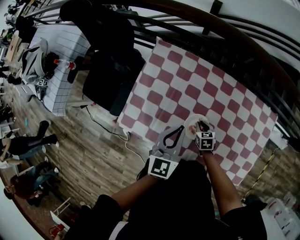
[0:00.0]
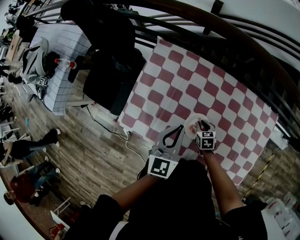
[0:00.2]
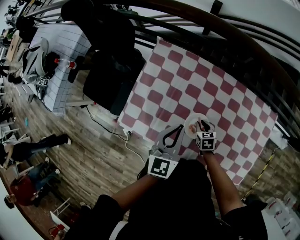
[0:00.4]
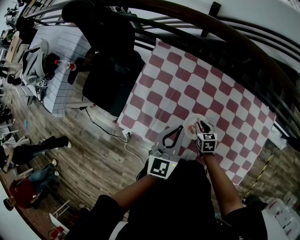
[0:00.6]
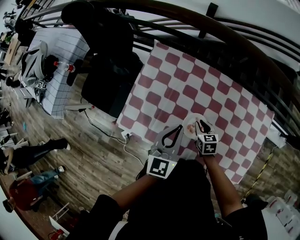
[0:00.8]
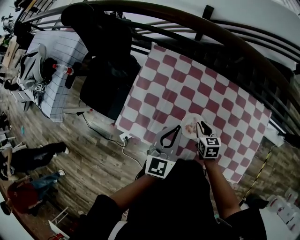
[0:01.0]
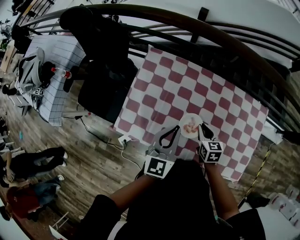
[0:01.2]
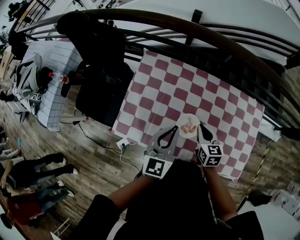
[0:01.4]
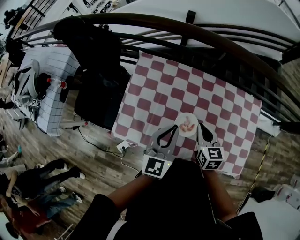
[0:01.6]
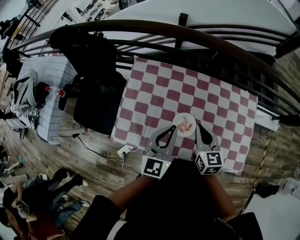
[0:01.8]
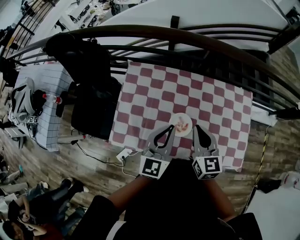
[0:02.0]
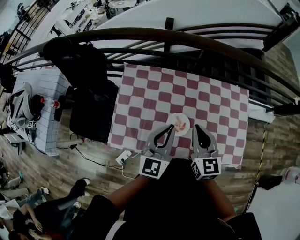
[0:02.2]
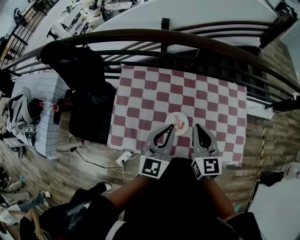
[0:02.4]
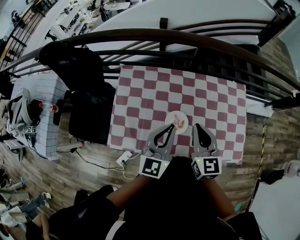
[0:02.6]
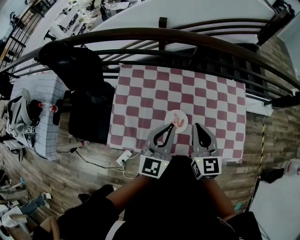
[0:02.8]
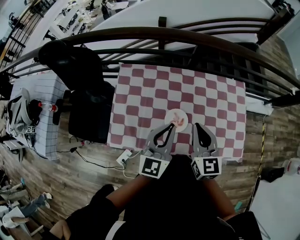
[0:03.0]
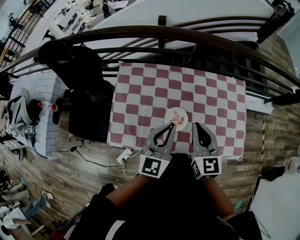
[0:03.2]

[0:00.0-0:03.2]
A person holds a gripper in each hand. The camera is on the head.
0:00.0 to 0:01.6: The right gripper shifts approximately 25 cm upward, and changes its angle by about 30 degrees. The left gripper is displaced upward by some 5 cm.
0:01.6 to 0:03.2: The left gripper ends up approximately 5 cm from where it was. Meanwhile the right gripper heads upward and backward, covering some 15 cm, and turns by roughly 20 degrees.

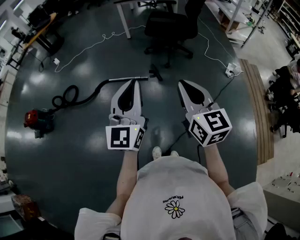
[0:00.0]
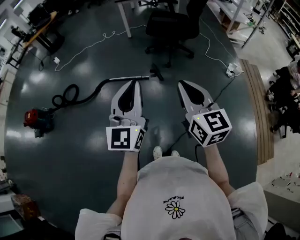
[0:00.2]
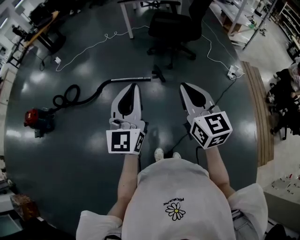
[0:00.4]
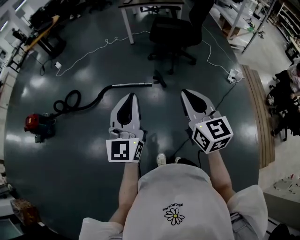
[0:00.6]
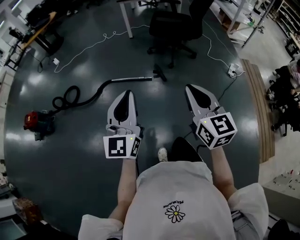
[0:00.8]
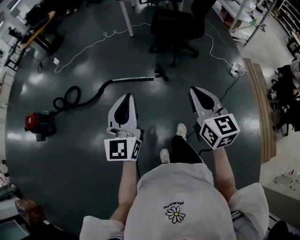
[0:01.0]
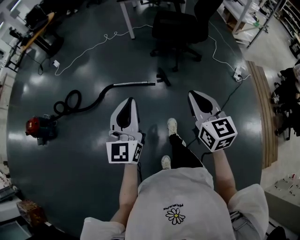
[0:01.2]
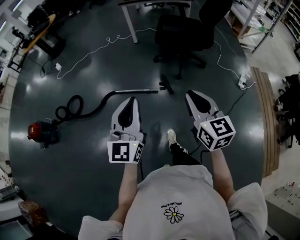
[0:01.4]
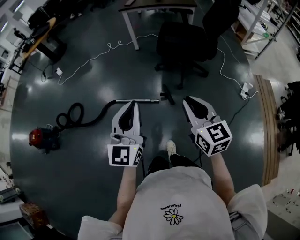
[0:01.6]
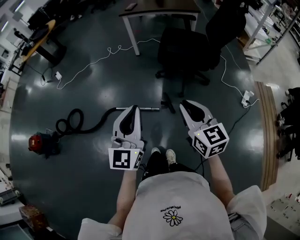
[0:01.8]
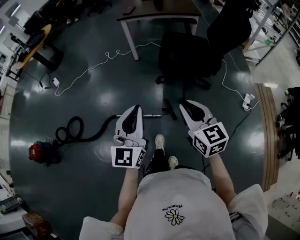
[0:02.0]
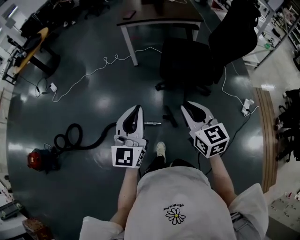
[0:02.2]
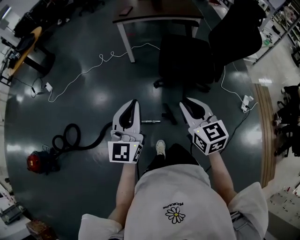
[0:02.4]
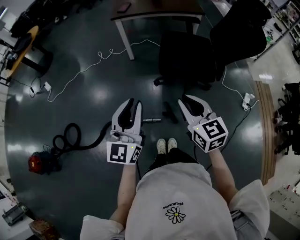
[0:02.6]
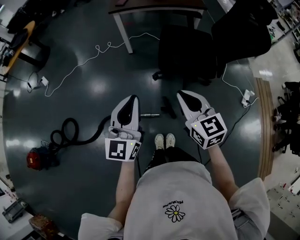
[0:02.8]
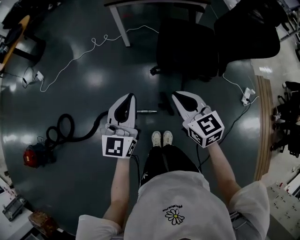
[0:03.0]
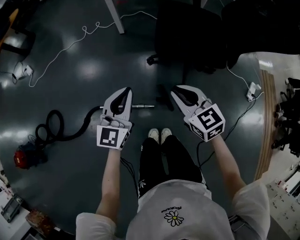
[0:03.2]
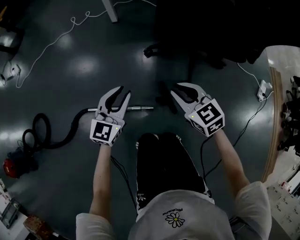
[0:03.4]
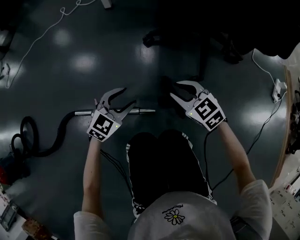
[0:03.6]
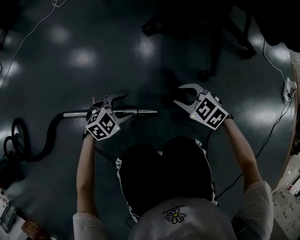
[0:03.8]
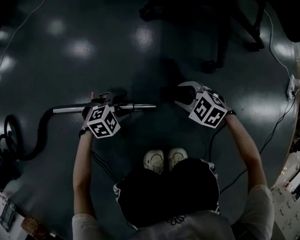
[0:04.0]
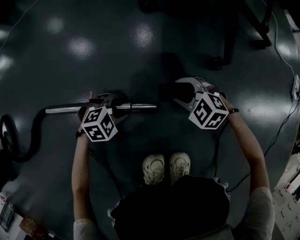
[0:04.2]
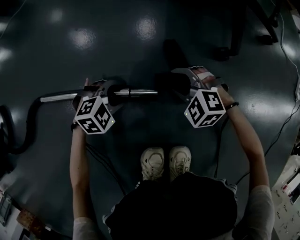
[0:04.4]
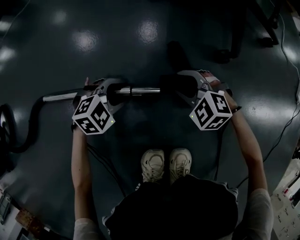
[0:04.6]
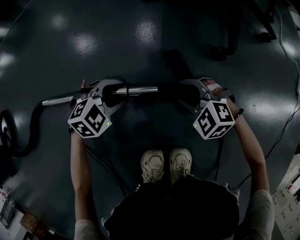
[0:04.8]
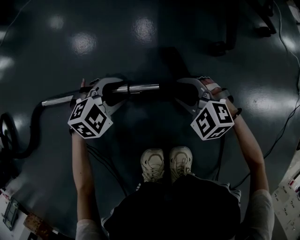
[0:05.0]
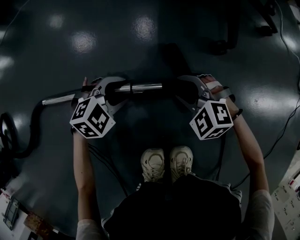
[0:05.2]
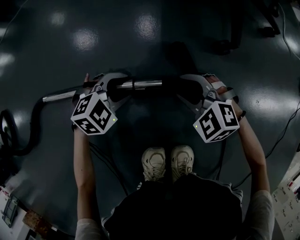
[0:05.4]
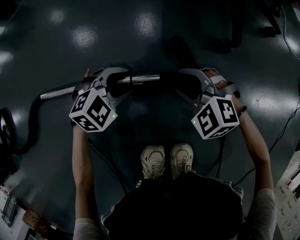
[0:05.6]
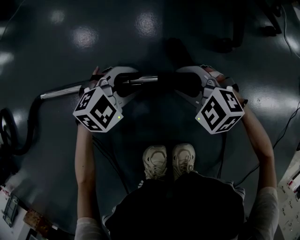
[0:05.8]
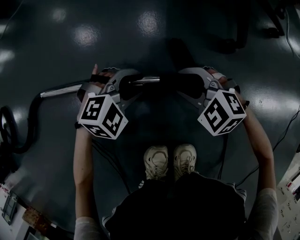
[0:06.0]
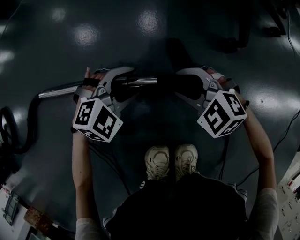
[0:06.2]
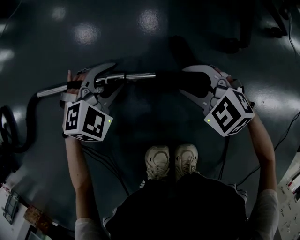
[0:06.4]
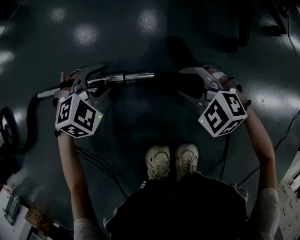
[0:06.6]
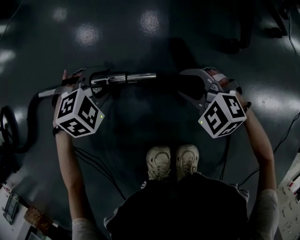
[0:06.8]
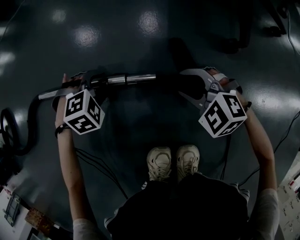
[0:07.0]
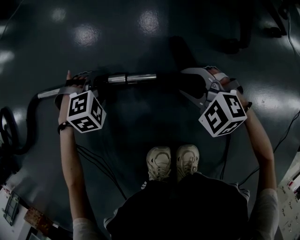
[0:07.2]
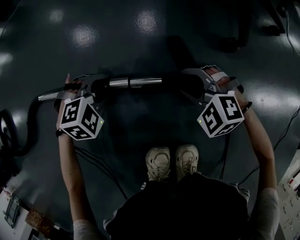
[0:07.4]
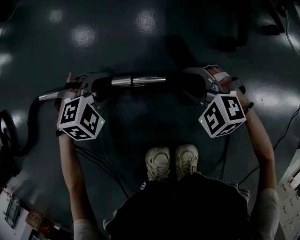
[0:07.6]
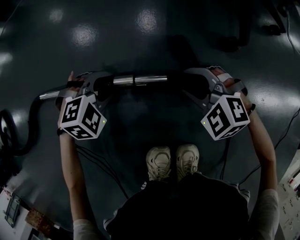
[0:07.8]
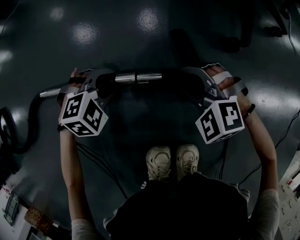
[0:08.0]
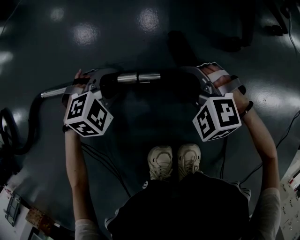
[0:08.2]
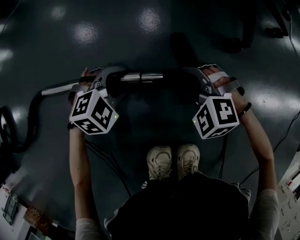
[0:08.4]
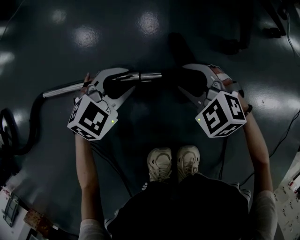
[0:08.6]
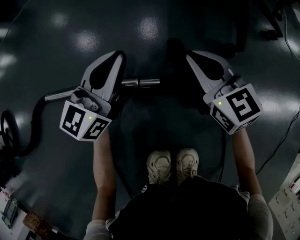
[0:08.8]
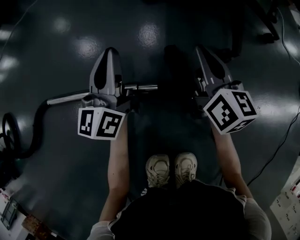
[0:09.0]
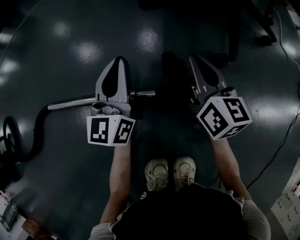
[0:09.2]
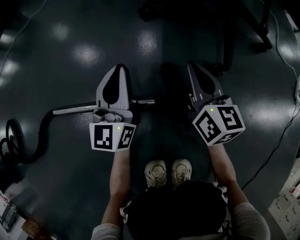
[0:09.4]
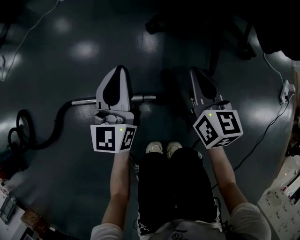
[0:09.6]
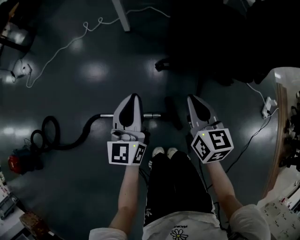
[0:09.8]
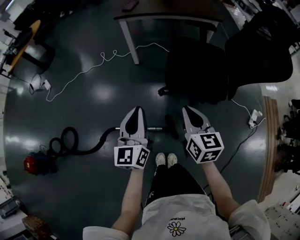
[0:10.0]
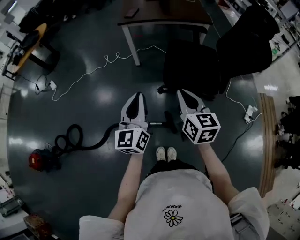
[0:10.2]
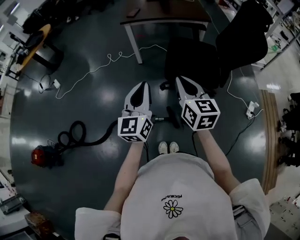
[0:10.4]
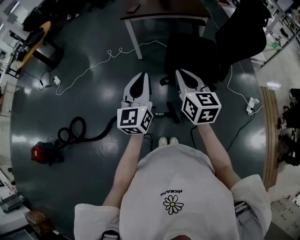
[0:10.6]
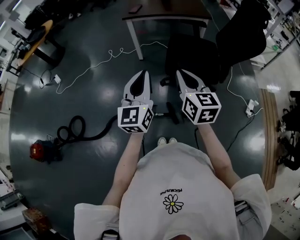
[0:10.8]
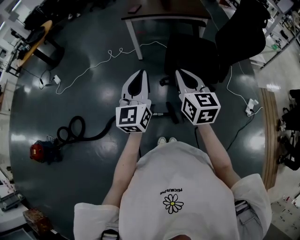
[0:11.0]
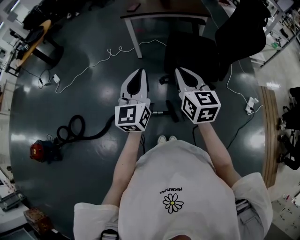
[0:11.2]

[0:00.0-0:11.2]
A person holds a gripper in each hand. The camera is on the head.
0:00.0 to 0:01.6: The grippers both shift forward by some 30 cm.
0:01.6 to 0:03.2: The two grippers go about 50 cm forward and downward.
0:03.2 to 0:04.8: Both grippers travel together downward, roughly 70 cm. The left gripper points its fingers about 50 degrees further downward, and opens its fingers; the right gripper turns by roughly 50 degrees, and opens.
0:04.8 to 0:06.4: The grippers move only a little.
0:08.0 to 0:09.6: The two grippers go roughly 35 cm upward. The right gripper twists roughly 80 degrees clockwise, seen from behind, and closes. The left gripper points its fingers some 70 degrees further upward, and closes up.
0:09.6 to 0:11.2: Both grippers travel together upward, approximately 70 cm.

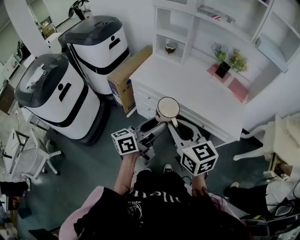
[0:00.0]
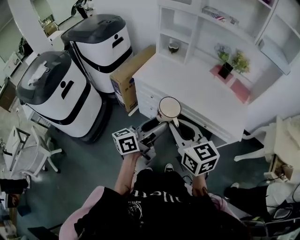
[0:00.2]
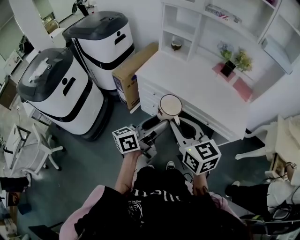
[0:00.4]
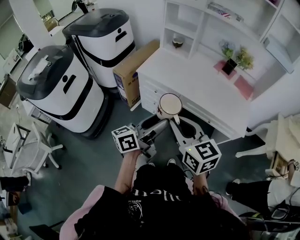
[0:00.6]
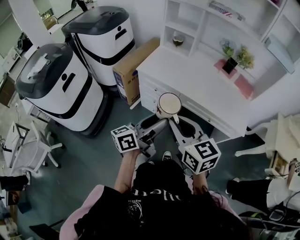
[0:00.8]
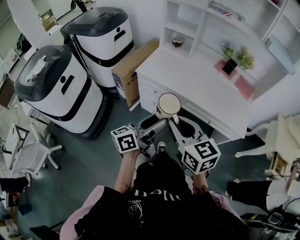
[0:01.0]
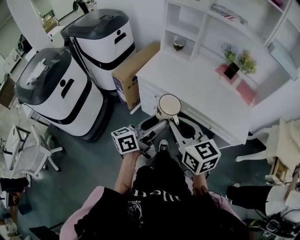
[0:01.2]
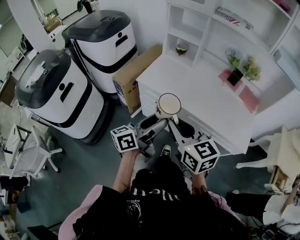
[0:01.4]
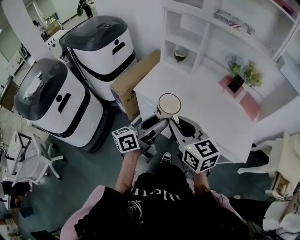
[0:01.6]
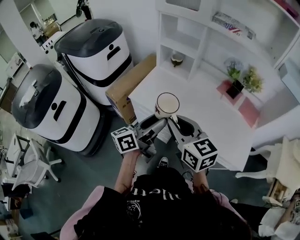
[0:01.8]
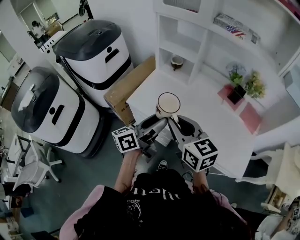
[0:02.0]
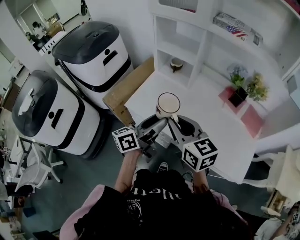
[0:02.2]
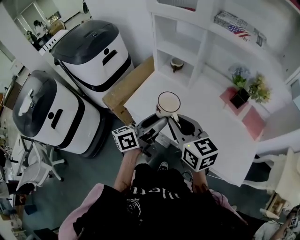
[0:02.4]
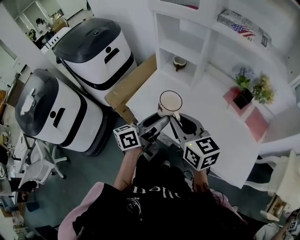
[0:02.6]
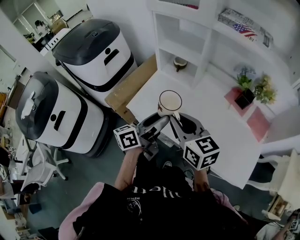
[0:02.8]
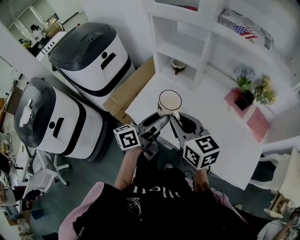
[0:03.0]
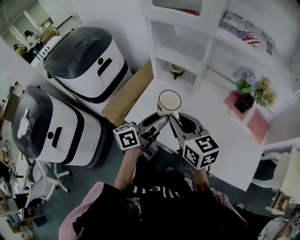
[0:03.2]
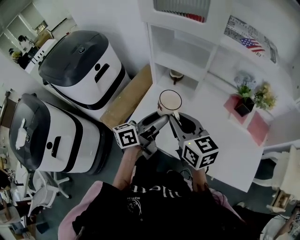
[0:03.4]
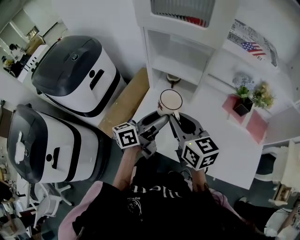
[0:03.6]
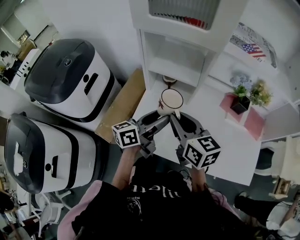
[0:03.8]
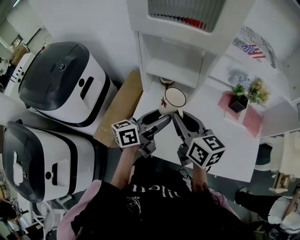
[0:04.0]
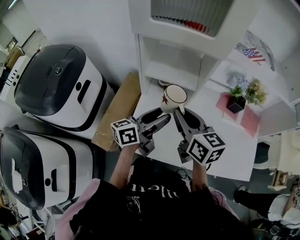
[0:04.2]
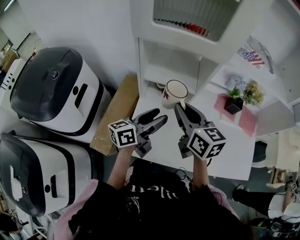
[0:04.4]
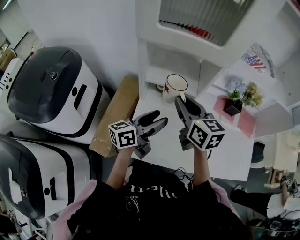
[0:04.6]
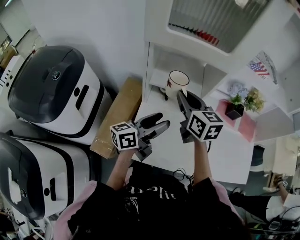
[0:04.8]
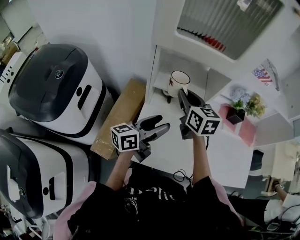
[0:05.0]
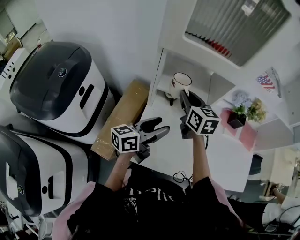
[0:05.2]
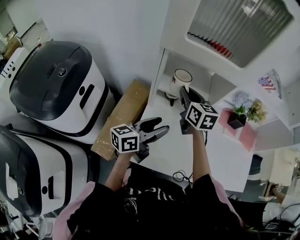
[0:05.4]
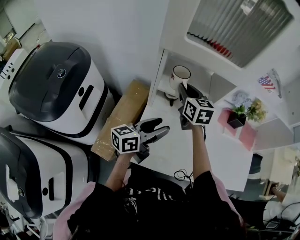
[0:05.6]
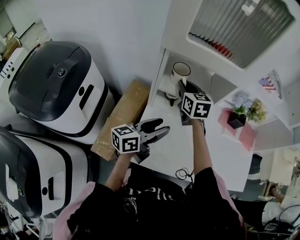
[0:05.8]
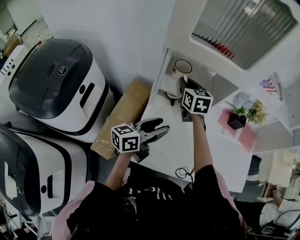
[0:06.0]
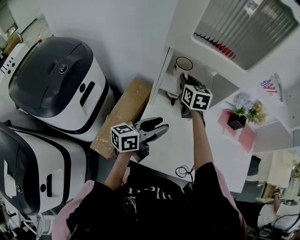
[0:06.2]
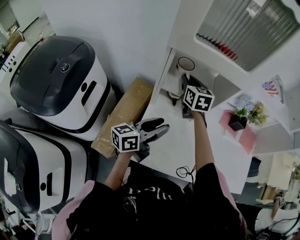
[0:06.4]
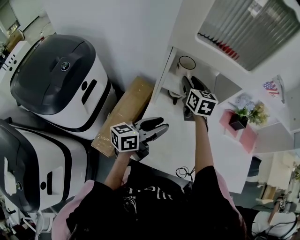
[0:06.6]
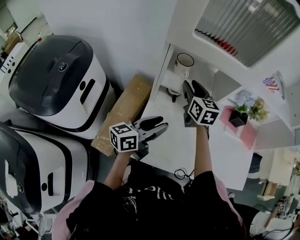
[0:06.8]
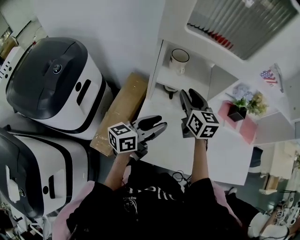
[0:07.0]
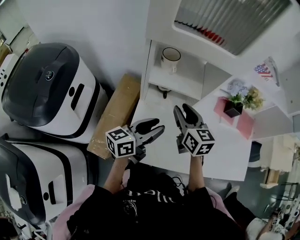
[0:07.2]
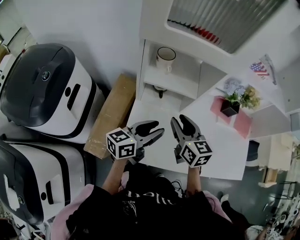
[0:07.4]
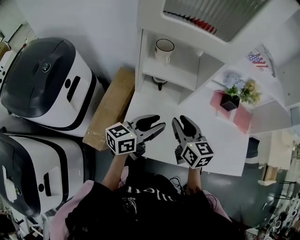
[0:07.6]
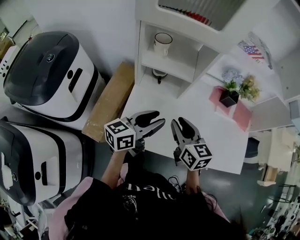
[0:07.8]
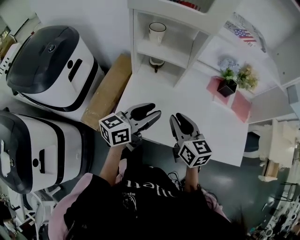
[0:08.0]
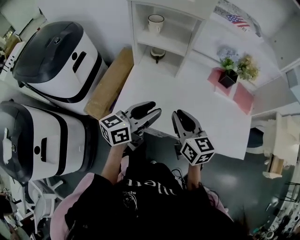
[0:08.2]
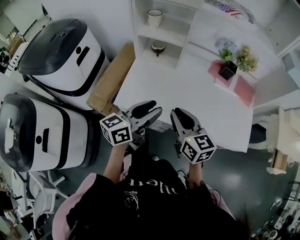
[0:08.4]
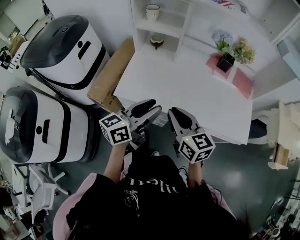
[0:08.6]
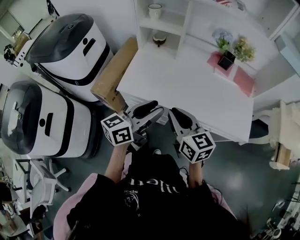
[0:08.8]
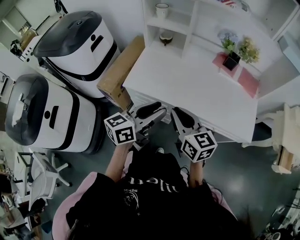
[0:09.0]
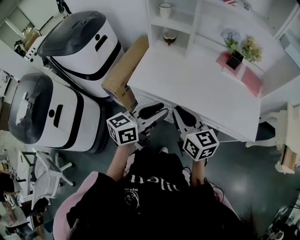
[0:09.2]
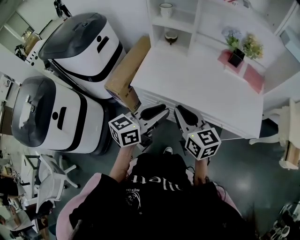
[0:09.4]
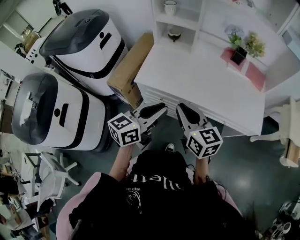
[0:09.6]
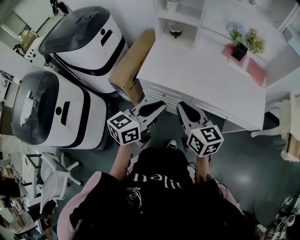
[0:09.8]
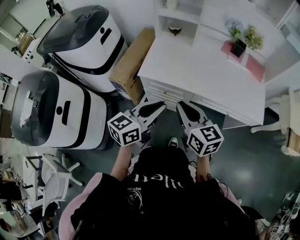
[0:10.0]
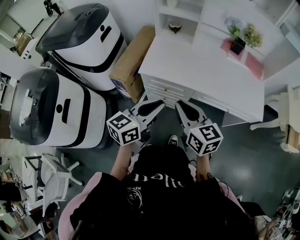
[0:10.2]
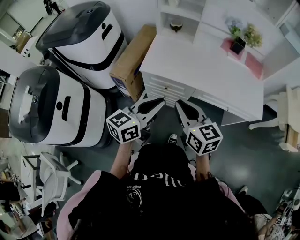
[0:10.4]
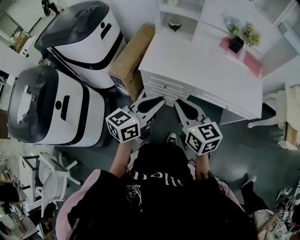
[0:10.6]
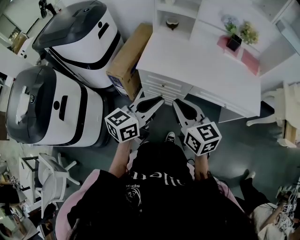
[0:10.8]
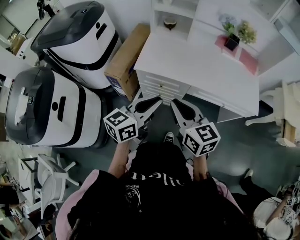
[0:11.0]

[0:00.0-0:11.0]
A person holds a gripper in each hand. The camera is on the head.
0:00.0 to 0:01.6: Both grippers move forward, roughly 15 cm.
0:01.6 to 0:03.2: Both grippers travel together forward, roughly 30 cm.
0:03.2 to 0:04.8: The left gripper moves forward and to the left, some 20 cm, and turns by some 20 degrees; the right gripper moves forward, about 25 cm, and rotates approximately 30 degrees.
0:04.8 to 0:06.2: The right gripper shifts roughly 15 cm forward and to the left.
0:06.2 to 0:07.8: The right gripper is displaced backward and to the right by some 30 cm. Meanwhile the left gripper travels to the right and backward by approximately 10 cm.
0:07.8 to 0:09.4: The two grippers go approximately 30 cm backward.
0:09.4 to 0:11.0: Both grippers move backward and to the left, roughly 15 cm.
